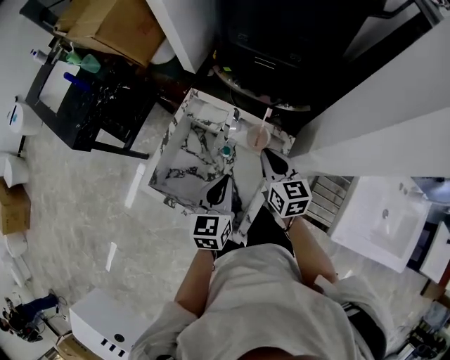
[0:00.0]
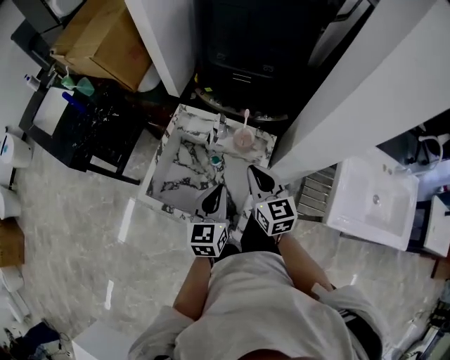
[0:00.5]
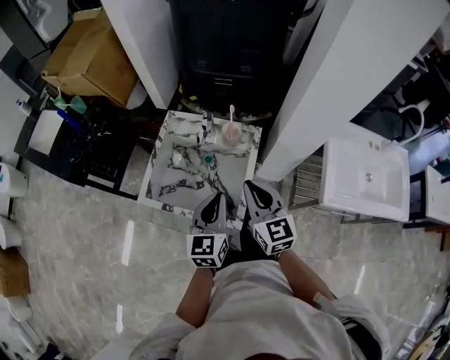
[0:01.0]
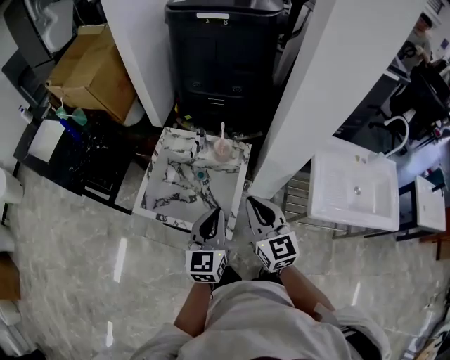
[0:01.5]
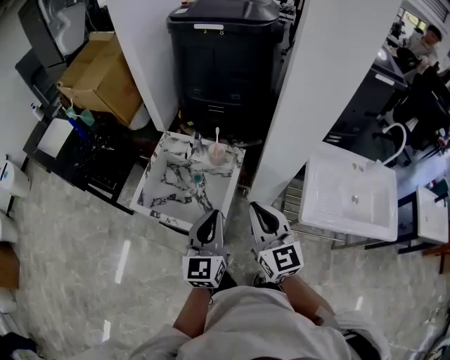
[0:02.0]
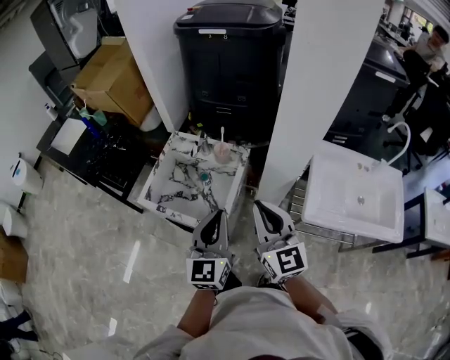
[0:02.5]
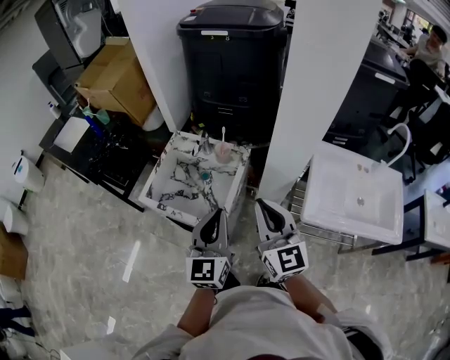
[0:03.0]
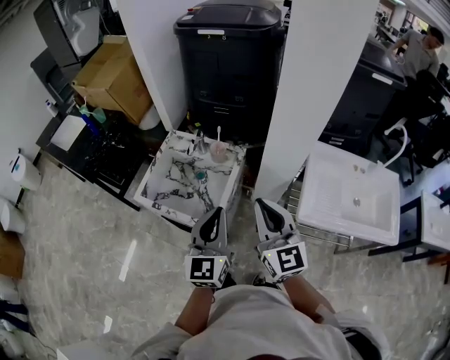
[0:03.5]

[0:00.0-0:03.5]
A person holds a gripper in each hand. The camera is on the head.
0:00.0 to 0:02.0: Both grippers travel together backward and upward, roughly 30 cm. The left gripper swivels approximately 20 degrees; the right gripper rotates roughly 30 degrees.
0:02.0 to 0:03.5: The left gripper moves approximately 5 cm; the right gripper changes place by about 5 cm.

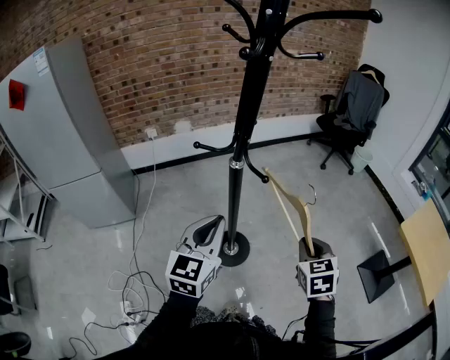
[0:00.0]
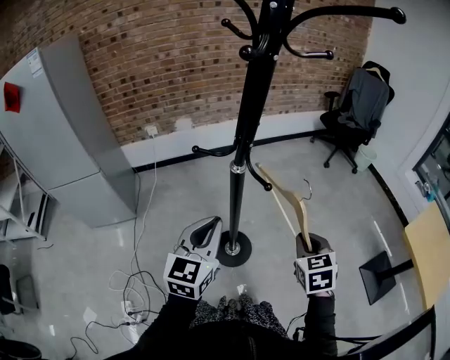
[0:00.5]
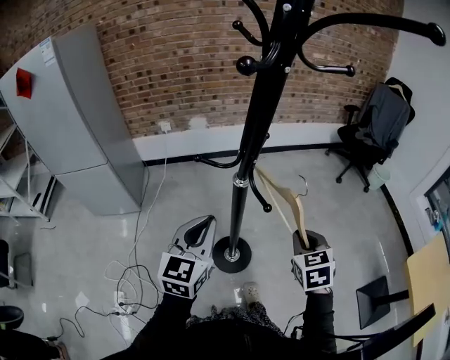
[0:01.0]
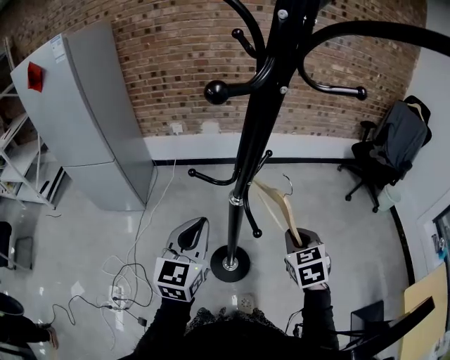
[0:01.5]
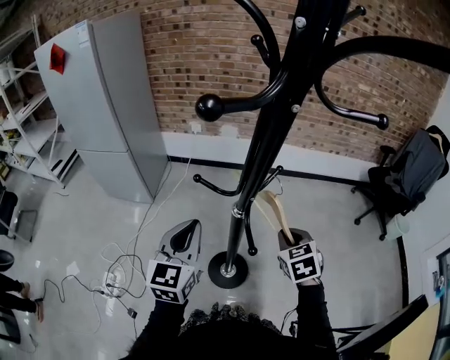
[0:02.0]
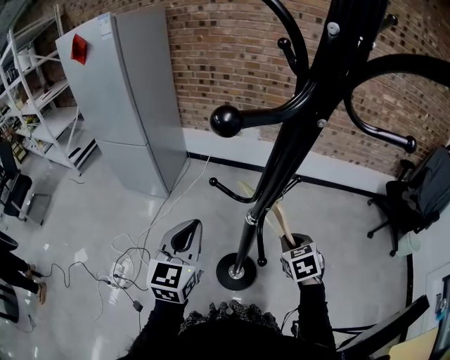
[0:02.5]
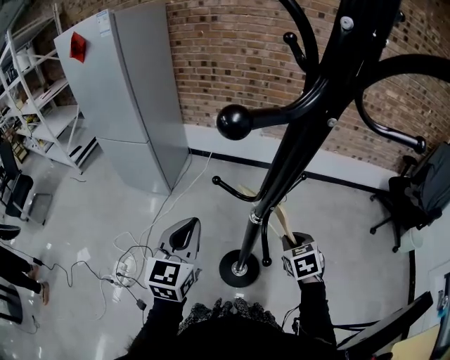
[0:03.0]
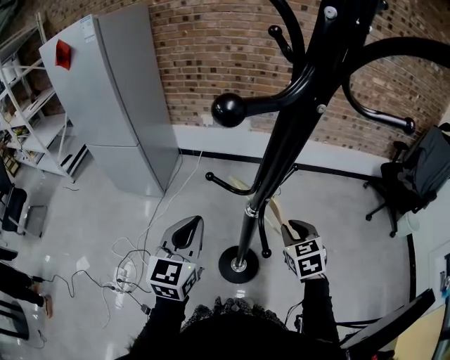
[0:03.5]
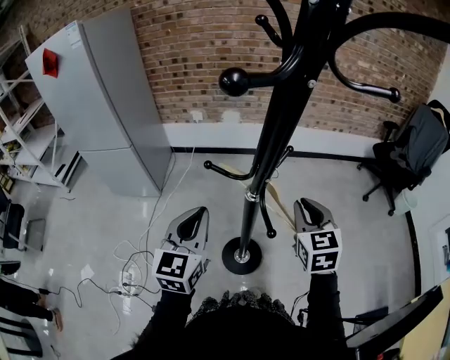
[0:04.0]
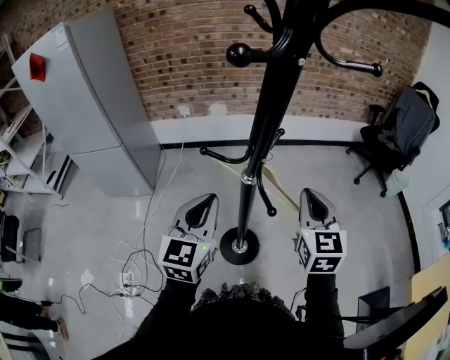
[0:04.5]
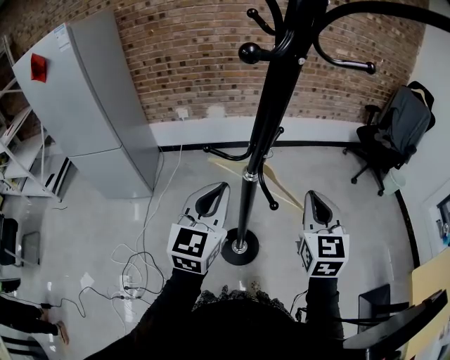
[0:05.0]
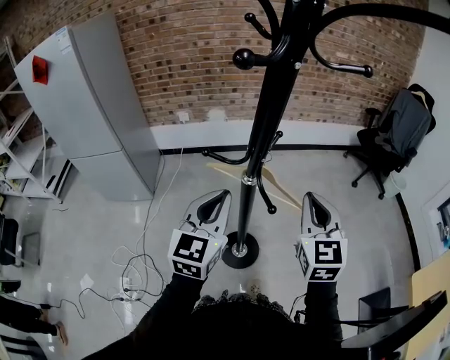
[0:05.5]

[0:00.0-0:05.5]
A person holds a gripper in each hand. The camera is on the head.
0:00.0 to 0:02.0: The right gripper changes place by some 30 cm, and swivels about 40 degrees. Meanwhile the left gripper ends up approximately 15 cm from where it was, and rotates approximately 30 degrees.
0:03.5 to 0:05.5: The left gripper travels to the right by about 5 cm; the right gripper is displaced upward and backward by roughly 20 cm, and swivels roughly 40 degrees.

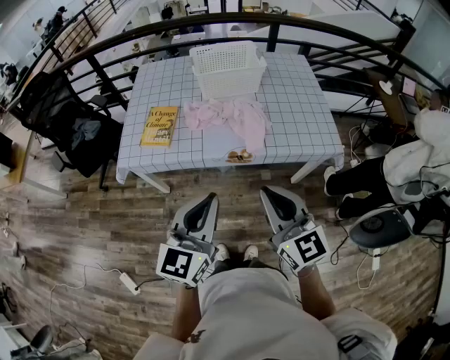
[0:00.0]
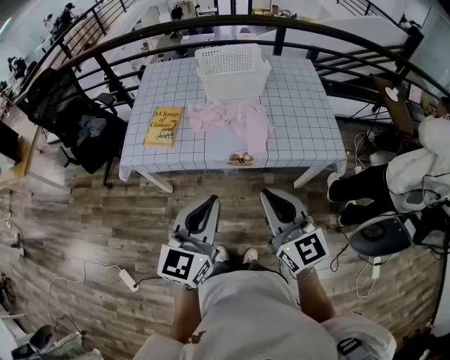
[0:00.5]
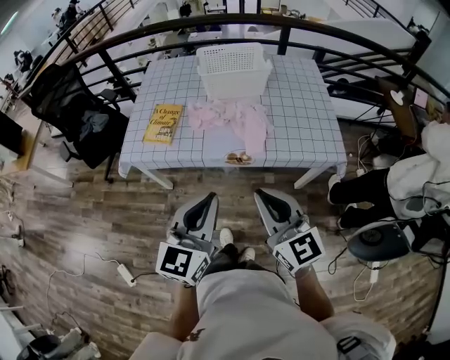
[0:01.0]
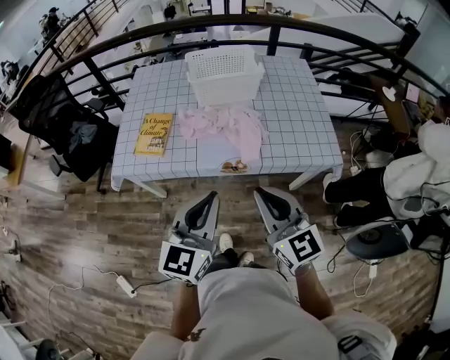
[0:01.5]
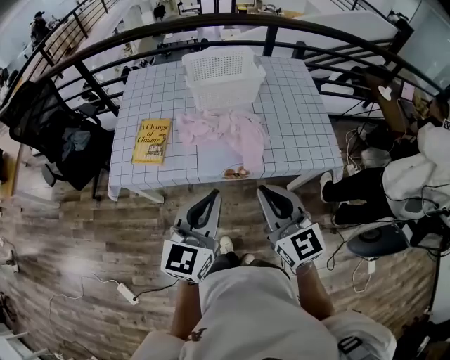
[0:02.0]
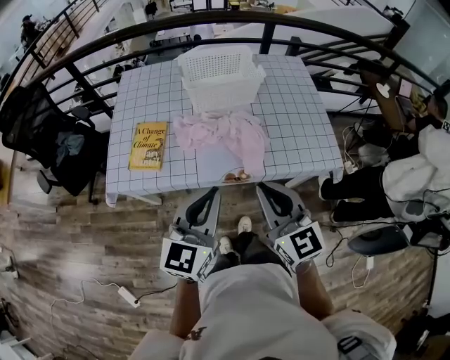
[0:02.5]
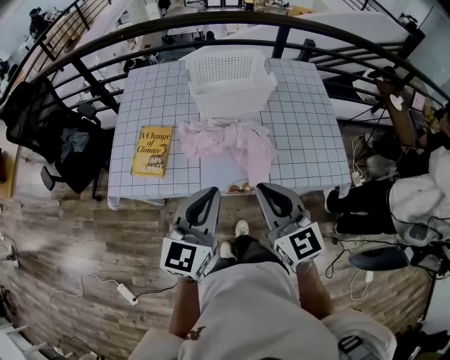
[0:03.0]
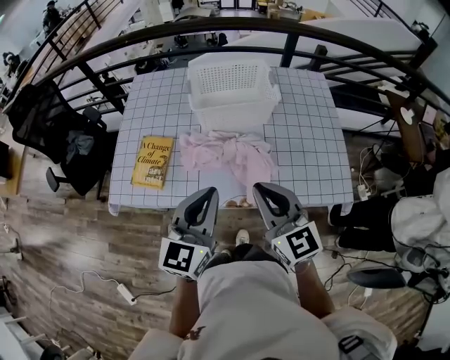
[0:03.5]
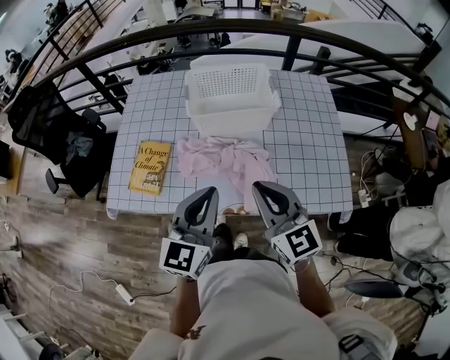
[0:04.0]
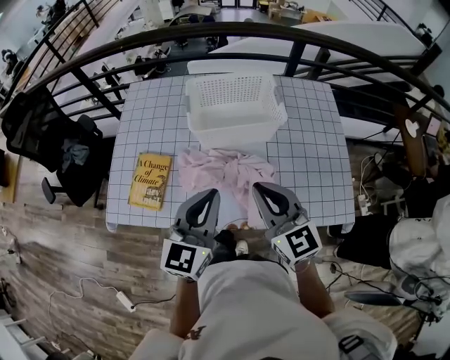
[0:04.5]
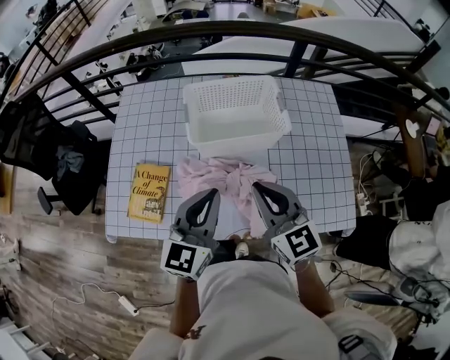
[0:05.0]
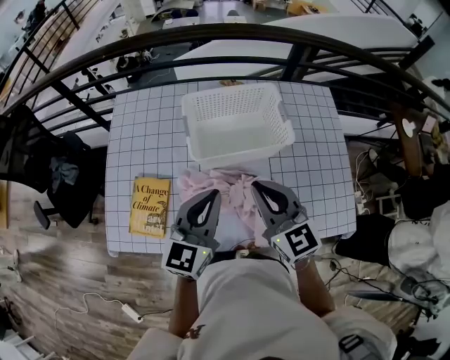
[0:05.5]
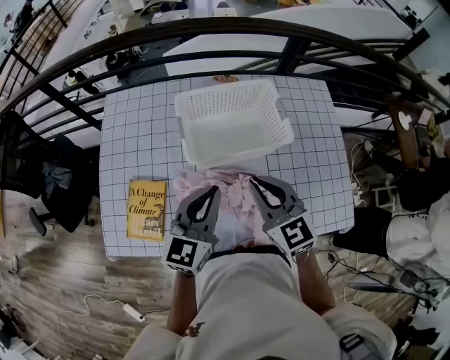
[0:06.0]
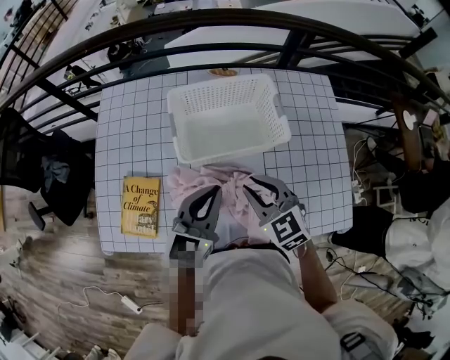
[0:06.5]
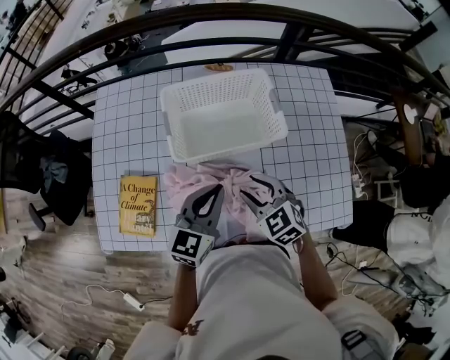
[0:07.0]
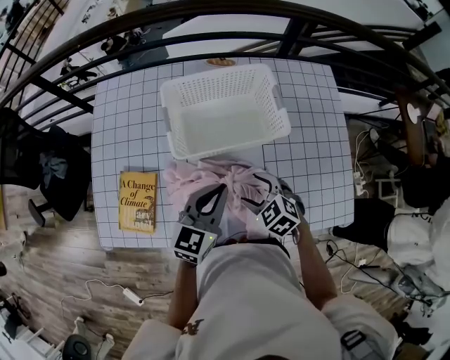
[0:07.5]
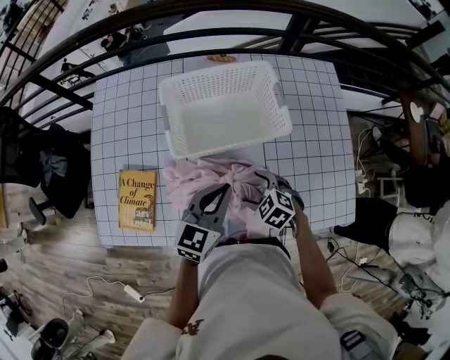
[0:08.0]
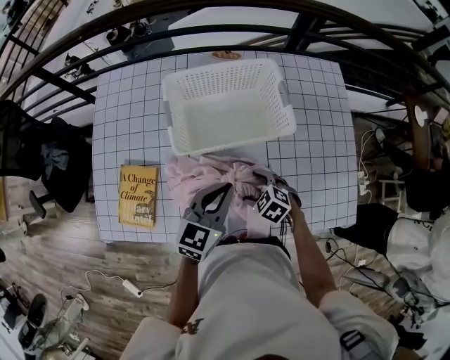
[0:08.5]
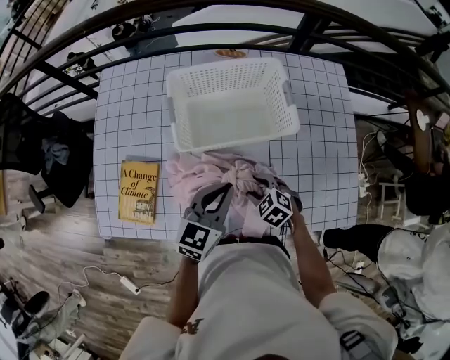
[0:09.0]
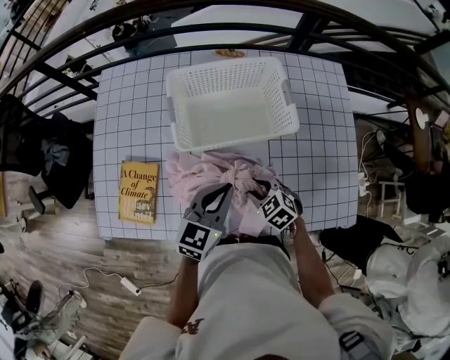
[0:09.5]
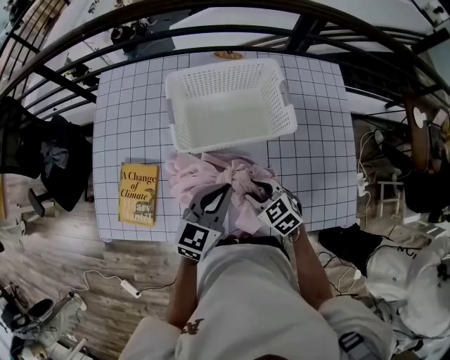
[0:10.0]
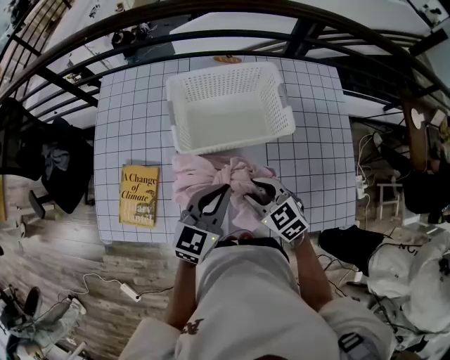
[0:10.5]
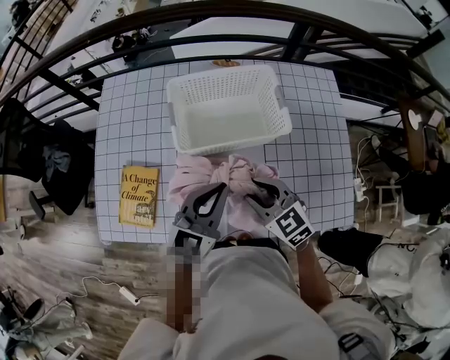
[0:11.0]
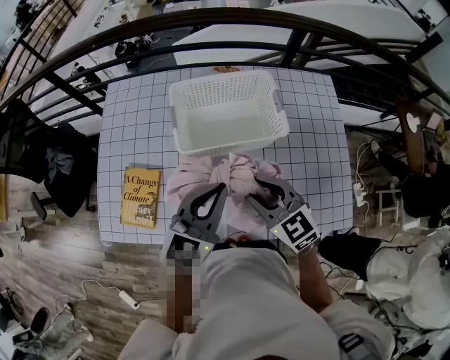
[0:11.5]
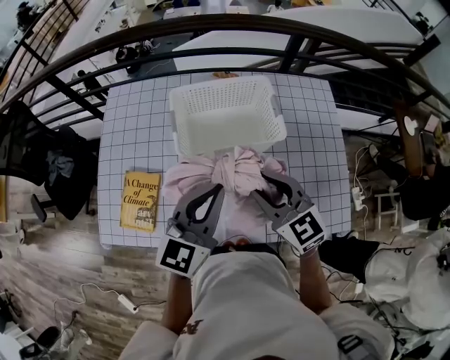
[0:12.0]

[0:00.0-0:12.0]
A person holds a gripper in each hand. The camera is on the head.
0:00.0 to 0:02.0: Both grippers move forward, approximately 10 cm.
0:02.0 to 0:04.0: Both grippers travel together forward, some 20 cm.
0:04.0 to 0:06.0: Both grippers travel together forward, roughly 20 cm.
0:06.0 to 0:08.0: The right gripper is displaced downward by some 25 cm, angles its fingers downward, by roughly 40 degrees, and opens its fingers. The left gripper heads downward and to the right, covering roughly 10 cm.
0:08.0 to 0:10.0: The right gripper closes its fingers.
0:10.0 to 0:12.0: Both grippers travel together upward, roughly 15 cm. The right gripper changes its angle by roughly 30 degrees.

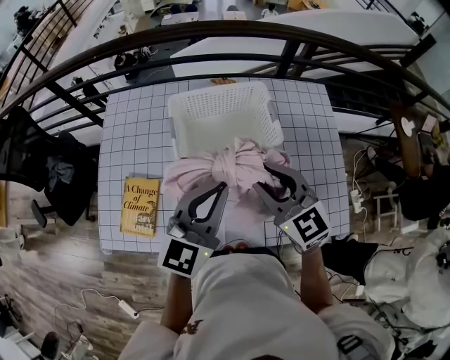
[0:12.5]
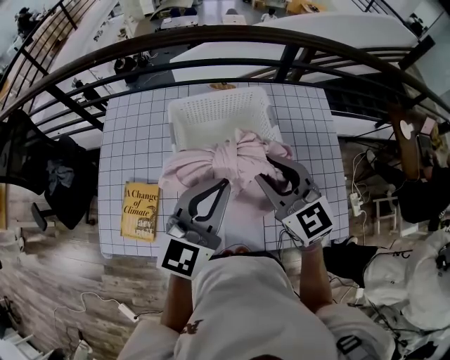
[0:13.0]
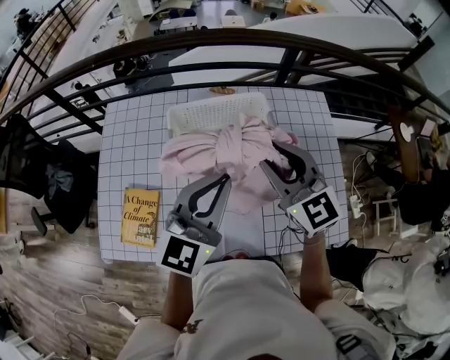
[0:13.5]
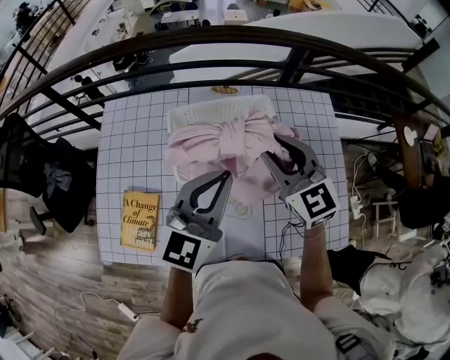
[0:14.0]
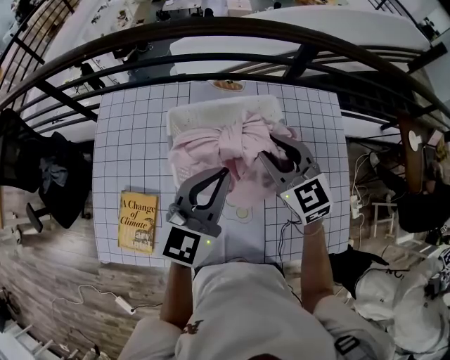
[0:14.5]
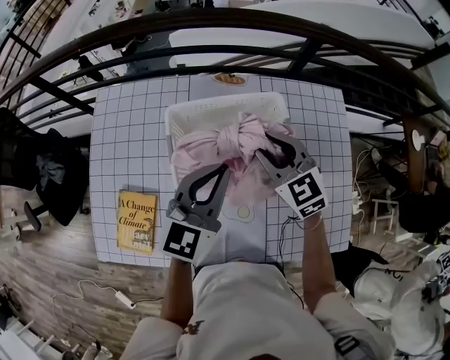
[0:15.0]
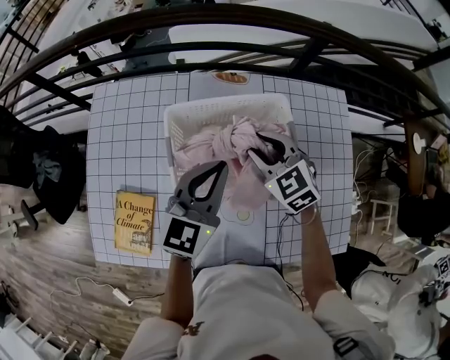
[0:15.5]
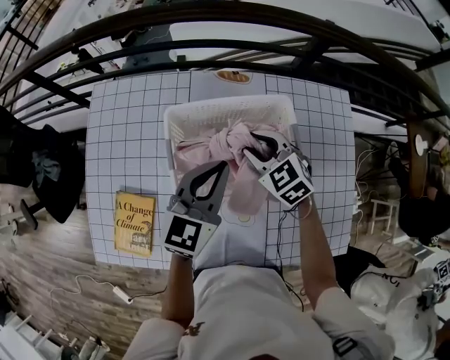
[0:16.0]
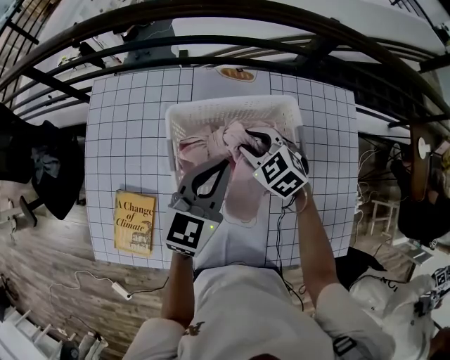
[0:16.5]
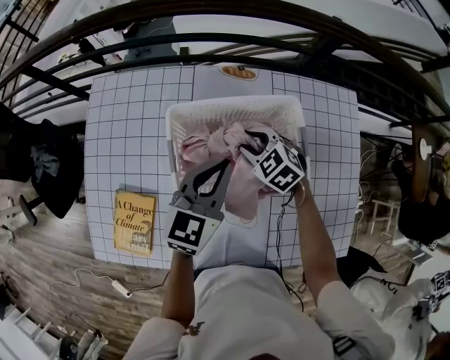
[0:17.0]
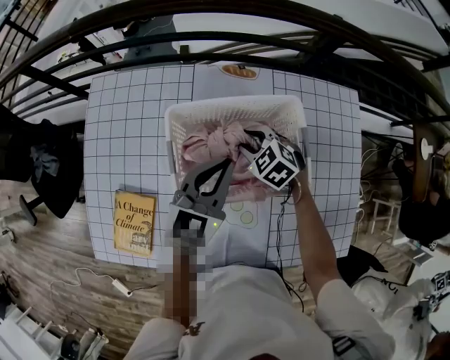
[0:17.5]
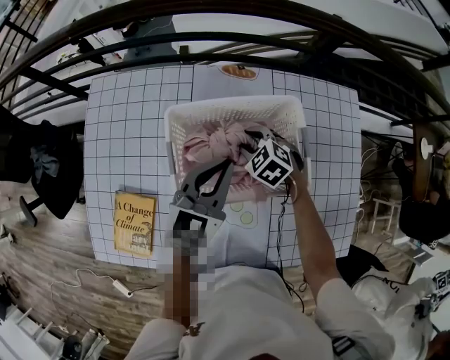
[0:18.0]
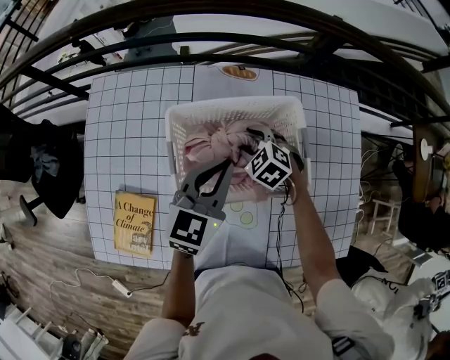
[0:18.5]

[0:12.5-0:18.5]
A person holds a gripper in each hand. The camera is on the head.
0:12.5 to 0:14.5: Both grippers move forward, some 15 cm.
0:14.5 to 0:16.5: The two grippers go roughly 15 cm downward and forward. The right gripper turns by approximately 30 degrees.
0:16.5 to 0:18.5: The right gripper goes about 10 cm downward.
